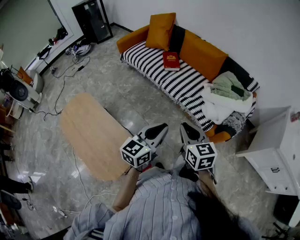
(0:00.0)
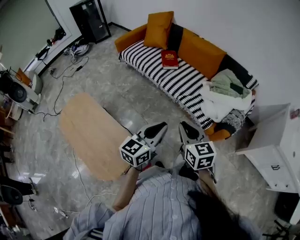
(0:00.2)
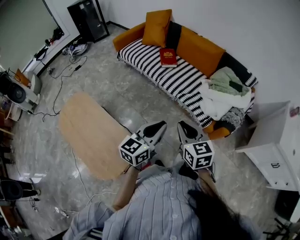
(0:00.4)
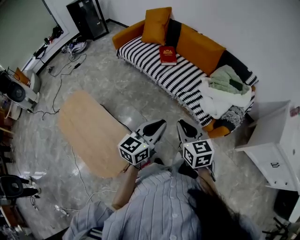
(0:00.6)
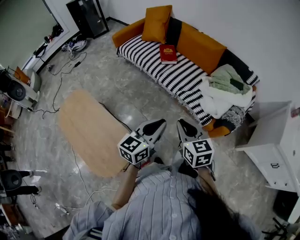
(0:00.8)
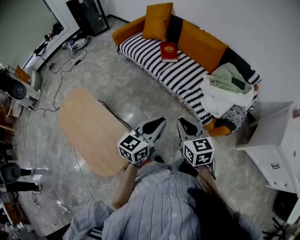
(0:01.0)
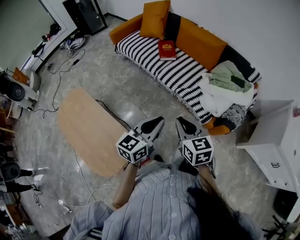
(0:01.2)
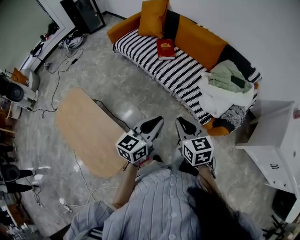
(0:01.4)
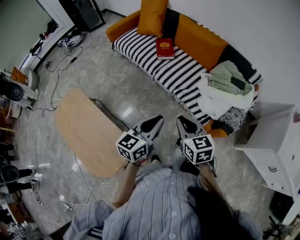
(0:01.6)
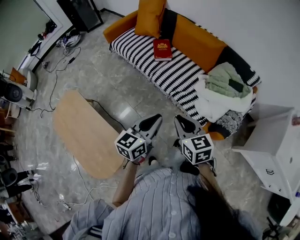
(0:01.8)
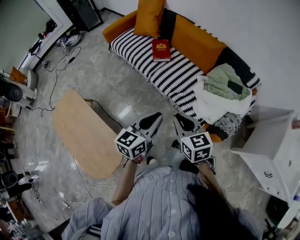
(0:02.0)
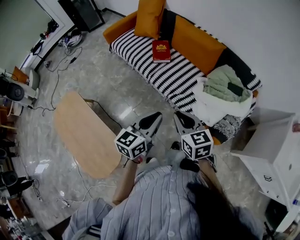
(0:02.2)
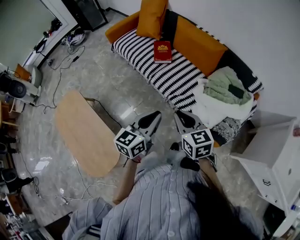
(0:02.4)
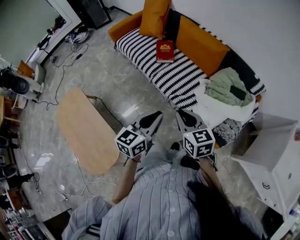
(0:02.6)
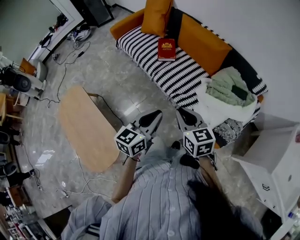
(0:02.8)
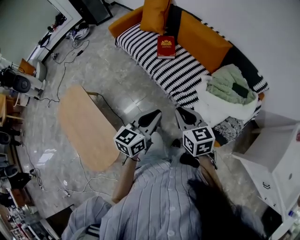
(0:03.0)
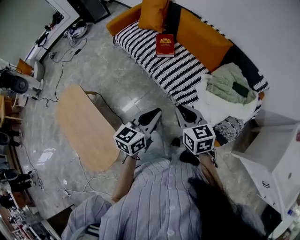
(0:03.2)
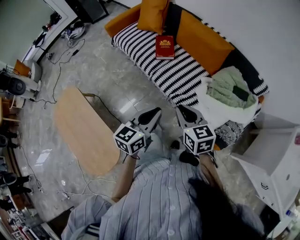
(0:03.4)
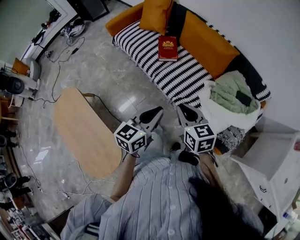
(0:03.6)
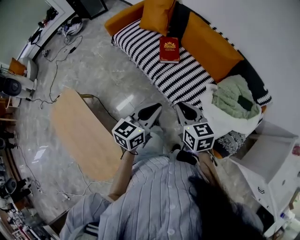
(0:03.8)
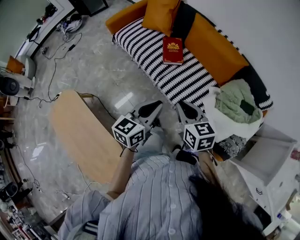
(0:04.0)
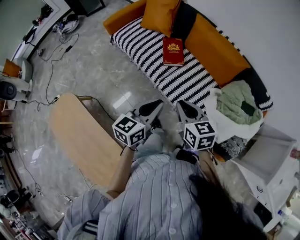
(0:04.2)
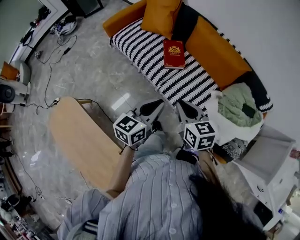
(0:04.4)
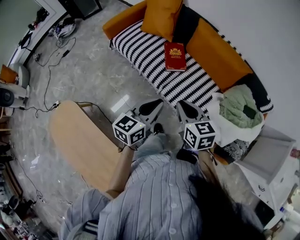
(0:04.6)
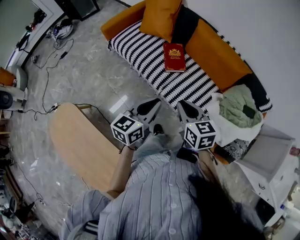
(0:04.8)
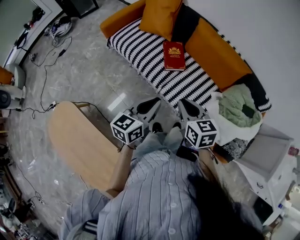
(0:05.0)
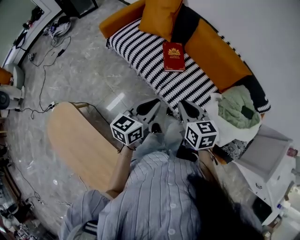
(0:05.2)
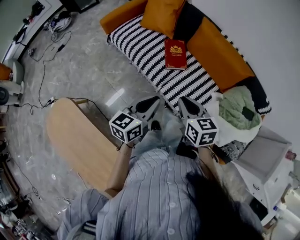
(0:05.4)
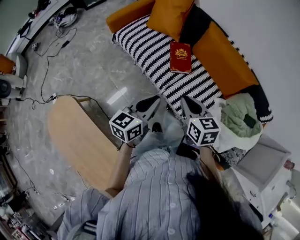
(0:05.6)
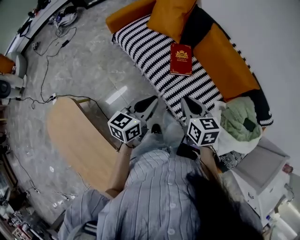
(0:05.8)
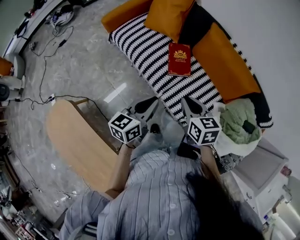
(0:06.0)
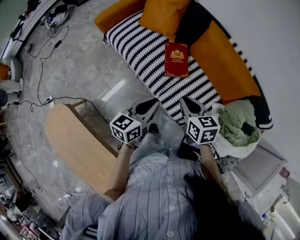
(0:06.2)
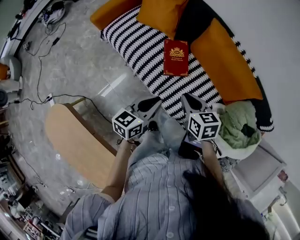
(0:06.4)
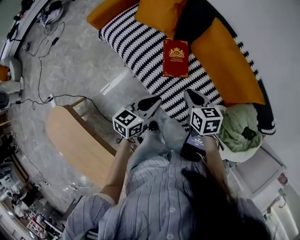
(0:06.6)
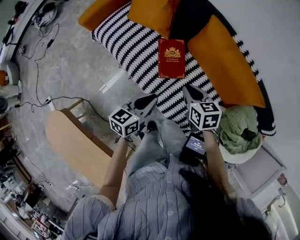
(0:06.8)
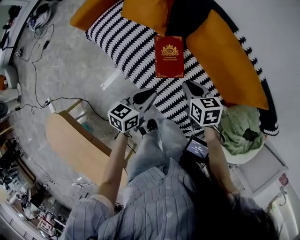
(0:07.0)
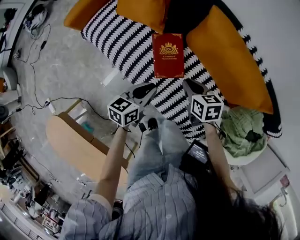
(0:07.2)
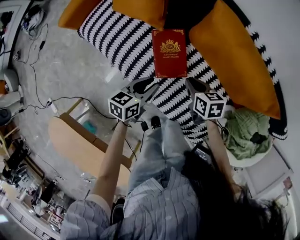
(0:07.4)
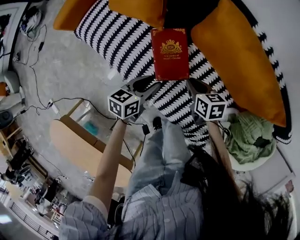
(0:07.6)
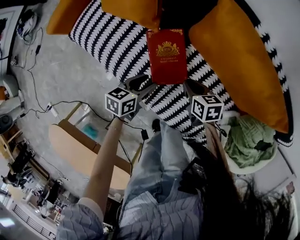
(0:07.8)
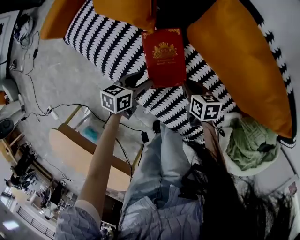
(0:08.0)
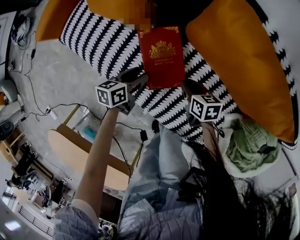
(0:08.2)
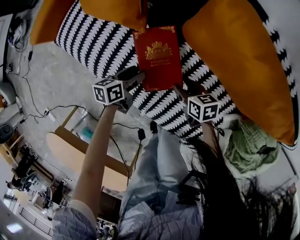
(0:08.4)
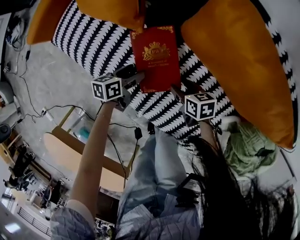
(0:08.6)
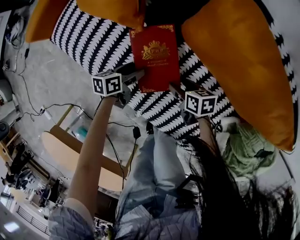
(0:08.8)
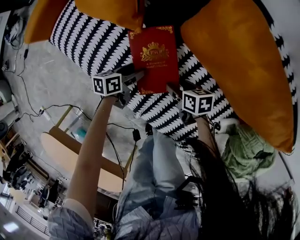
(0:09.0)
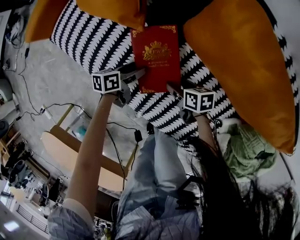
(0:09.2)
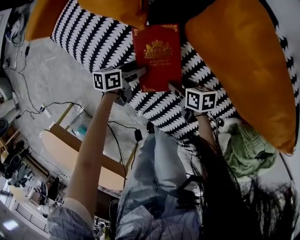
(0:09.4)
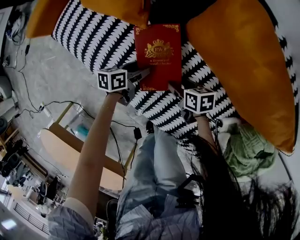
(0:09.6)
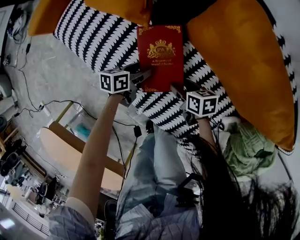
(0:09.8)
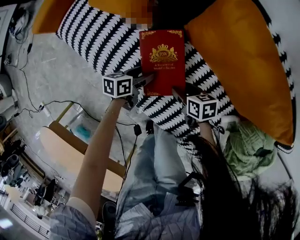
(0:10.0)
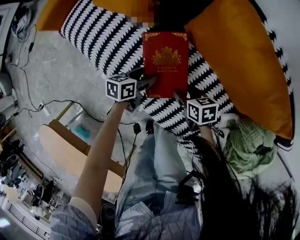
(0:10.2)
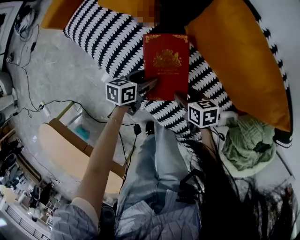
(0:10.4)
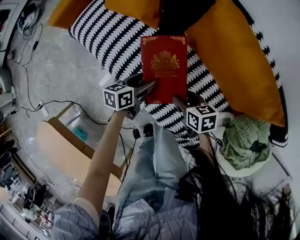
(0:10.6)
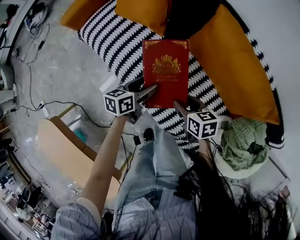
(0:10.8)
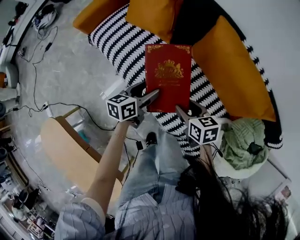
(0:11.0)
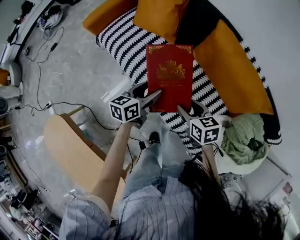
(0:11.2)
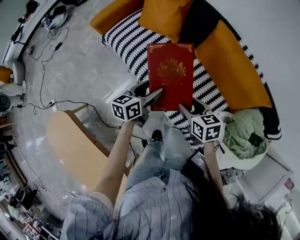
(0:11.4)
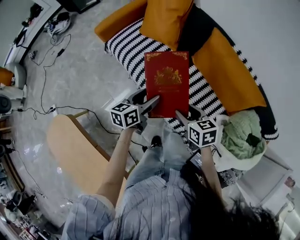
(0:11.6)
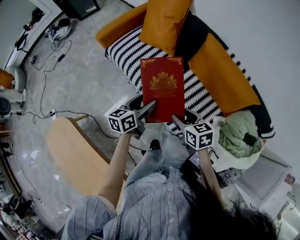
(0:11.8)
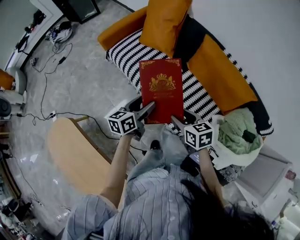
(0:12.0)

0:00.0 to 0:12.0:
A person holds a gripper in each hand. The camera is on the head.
0:00.0 to 0:01.6: The grippers both shift forward by about 10 cm.
0:01.6 to 0:03.0: Both grippers travel together forward and to the right, about 15 cm.
0:03.0 to 0:04.4: The two grippers go roughly 30 cm forward and to the left.
0:04.4 to 0:06.0: The left gripper heads forward and to the left, covering roughly 15 cm, while the right gripper moves forward, approximately 15 cm.
0:06.0 to 0:07.6: The grippers both shift downward and forward by approximately 40 cm. The left gripper rotates approximately 30 degrees. The right gripper swivels roughly 20 degrees.
0:07.6 to 0:09.0: The right gripper travels downward by roughly 15 cm, and opens; the left gripper shifts about 20 cm downward and forward, and opens up.
0:09.0 to 0:10.4: Both grippers move upward, about 10 cm.
0:10.4 to 0:12.0: The right gripper moves upward and backward, about 35 cm, and changes its angle by about 20 degrees. Meanwhile the left gripper moves upward, backward and to the left, about 40 cm, and swivels roughly 30 degrees.

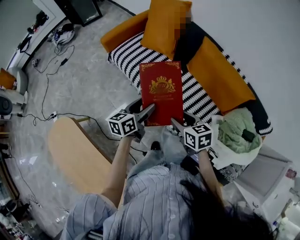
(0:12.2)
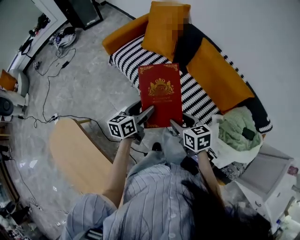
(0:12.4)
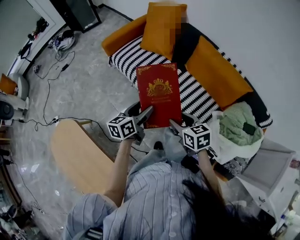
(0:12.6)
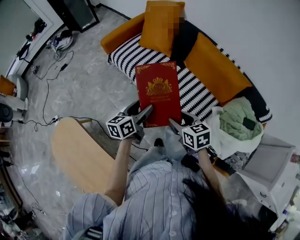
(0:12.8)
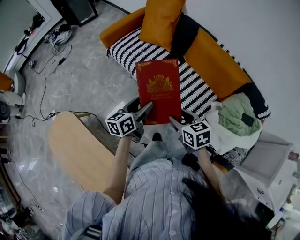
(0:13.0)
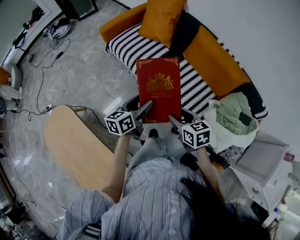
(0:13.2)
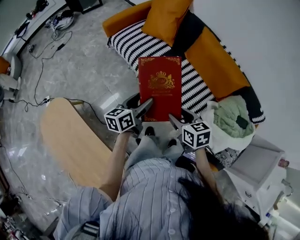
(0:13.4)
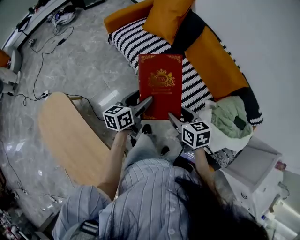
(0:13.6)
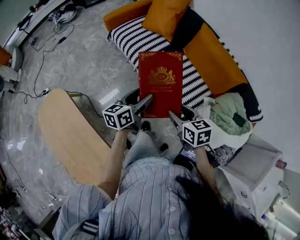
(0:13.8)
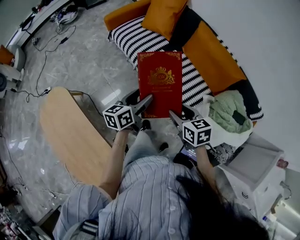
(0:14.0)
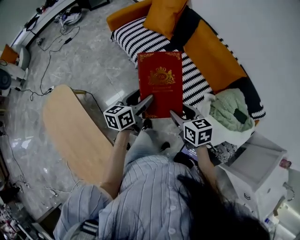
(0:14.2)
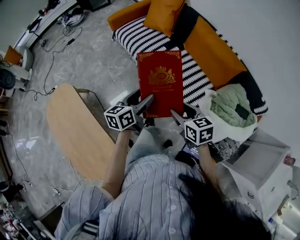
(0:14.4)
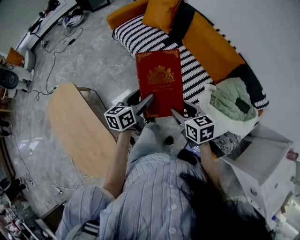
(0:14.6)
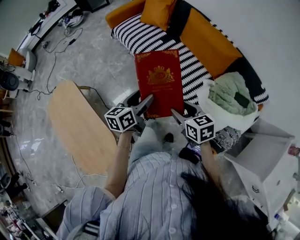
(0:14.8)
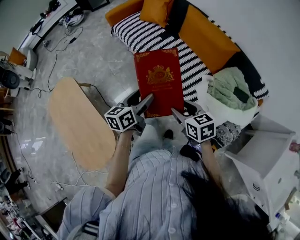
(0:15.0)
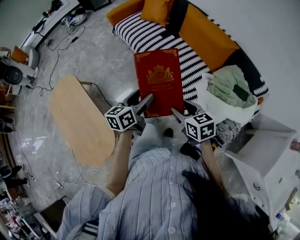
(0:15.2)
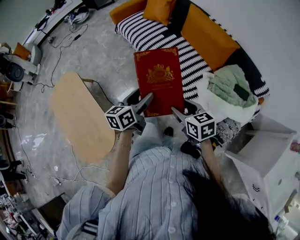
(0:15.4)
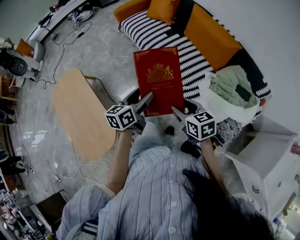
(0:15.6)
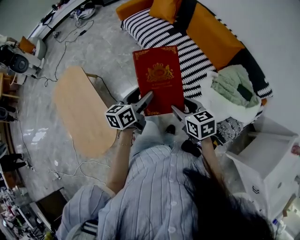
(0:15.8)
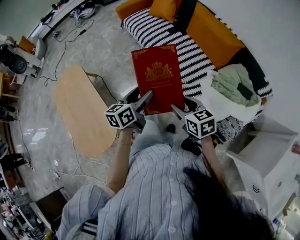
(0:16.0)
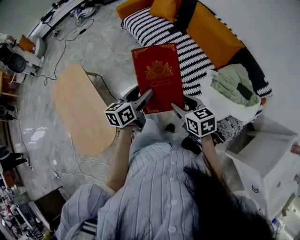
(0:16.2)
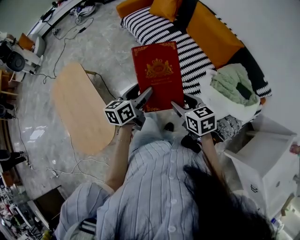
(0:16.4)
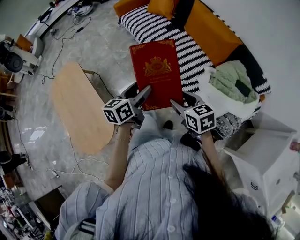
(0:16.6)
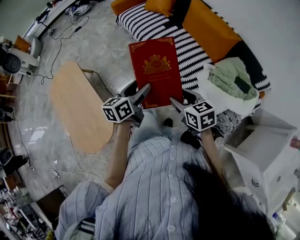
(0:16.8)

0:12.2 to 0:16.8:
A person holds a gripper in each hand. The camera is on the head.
0:12.2 to 0:13.8: Both grippers travel together backward, roughly 15 cm.
0:13.8 to 0:15.2: The left gripper is displaced backward by roughly 20 cm, while the right gripper goes approximately 20 cm backward and to the right.
0:15.2 to 0:16.8: The grippers stay close to where they were, moving slightly.

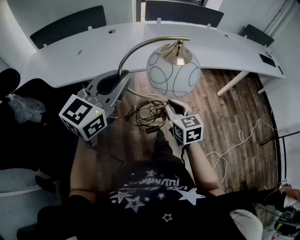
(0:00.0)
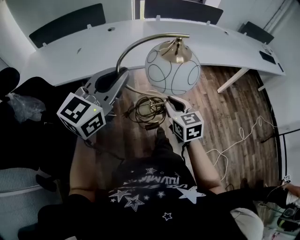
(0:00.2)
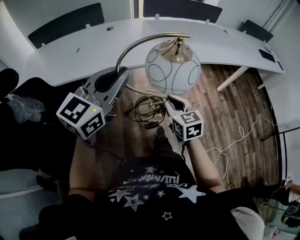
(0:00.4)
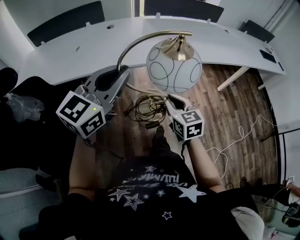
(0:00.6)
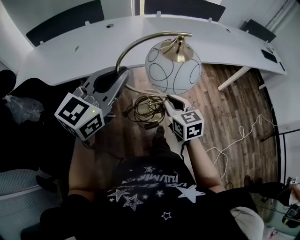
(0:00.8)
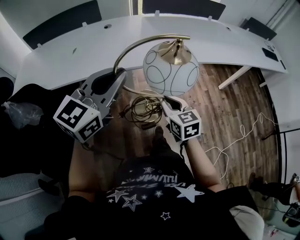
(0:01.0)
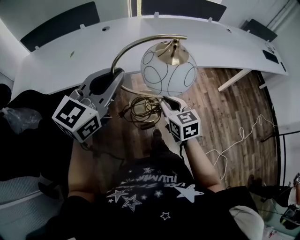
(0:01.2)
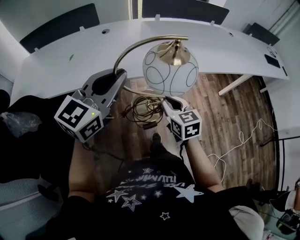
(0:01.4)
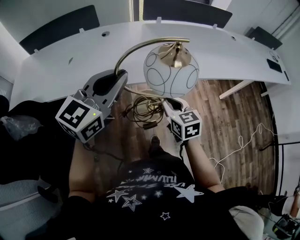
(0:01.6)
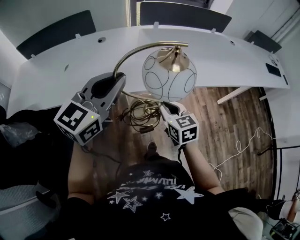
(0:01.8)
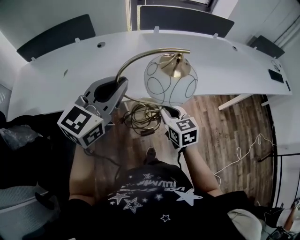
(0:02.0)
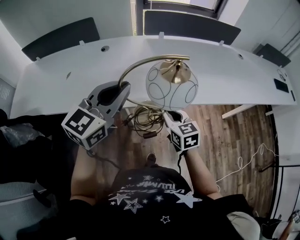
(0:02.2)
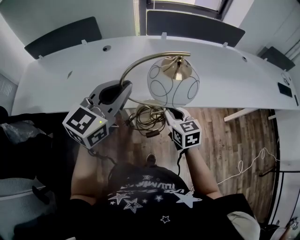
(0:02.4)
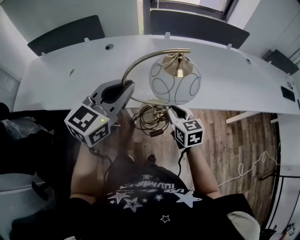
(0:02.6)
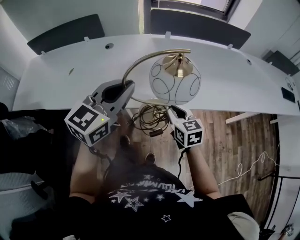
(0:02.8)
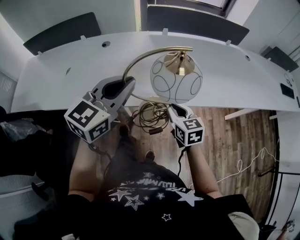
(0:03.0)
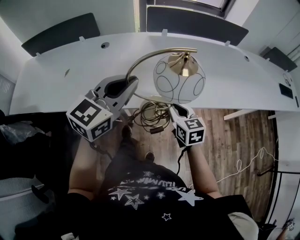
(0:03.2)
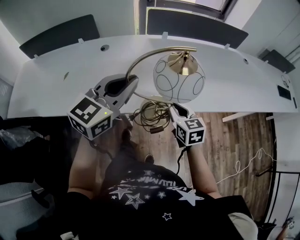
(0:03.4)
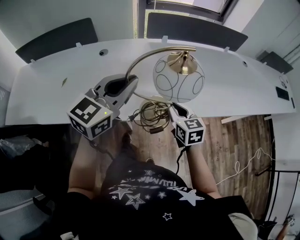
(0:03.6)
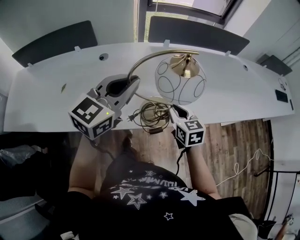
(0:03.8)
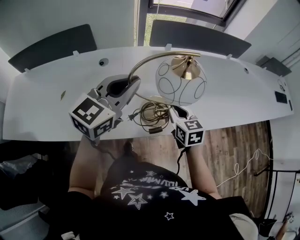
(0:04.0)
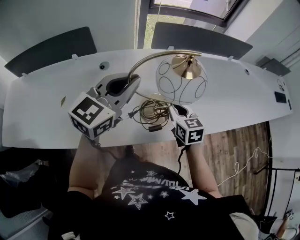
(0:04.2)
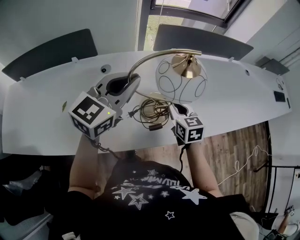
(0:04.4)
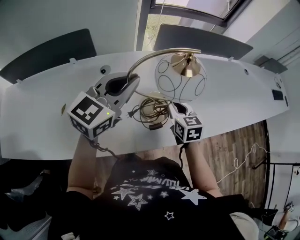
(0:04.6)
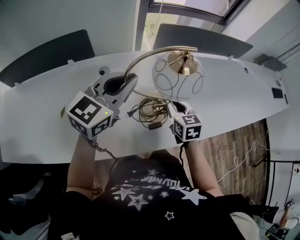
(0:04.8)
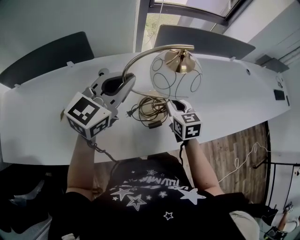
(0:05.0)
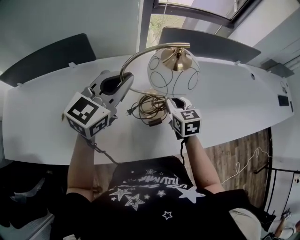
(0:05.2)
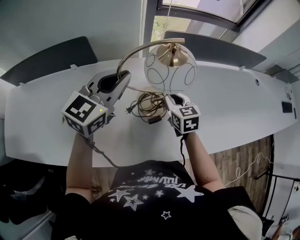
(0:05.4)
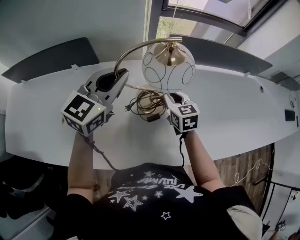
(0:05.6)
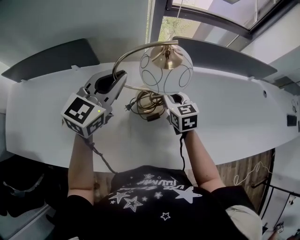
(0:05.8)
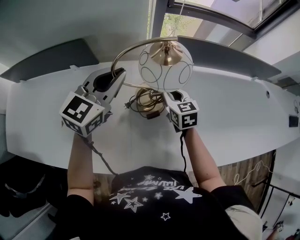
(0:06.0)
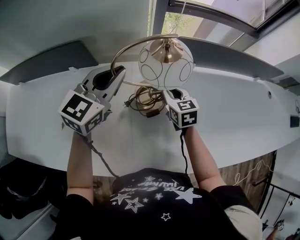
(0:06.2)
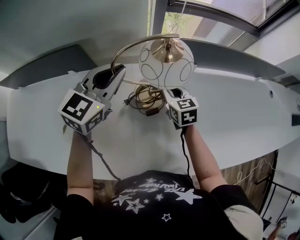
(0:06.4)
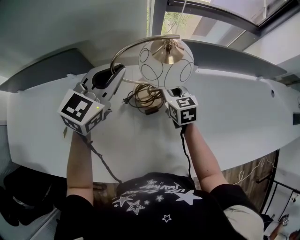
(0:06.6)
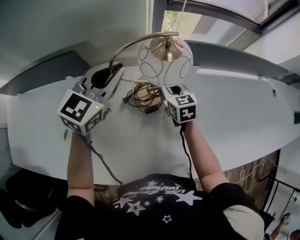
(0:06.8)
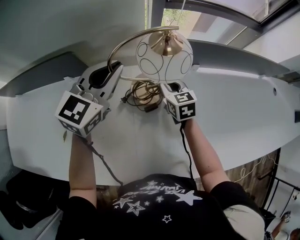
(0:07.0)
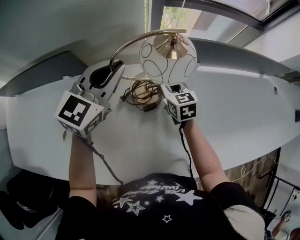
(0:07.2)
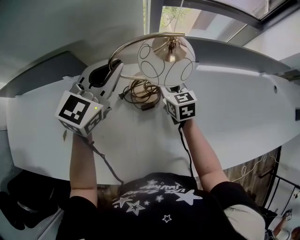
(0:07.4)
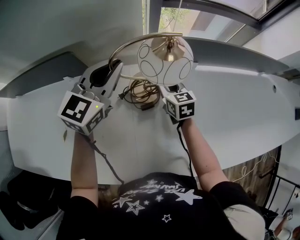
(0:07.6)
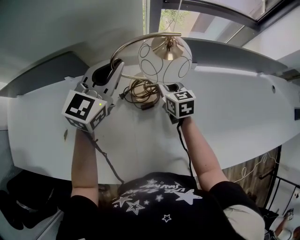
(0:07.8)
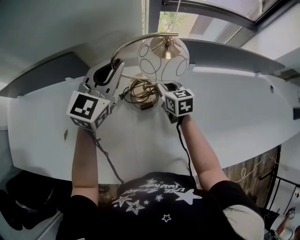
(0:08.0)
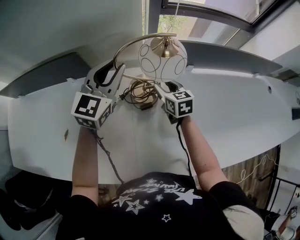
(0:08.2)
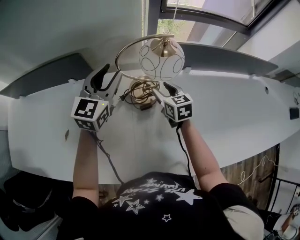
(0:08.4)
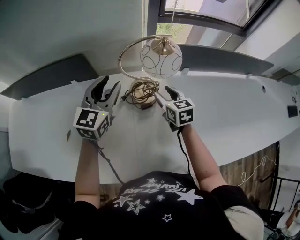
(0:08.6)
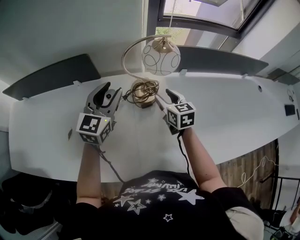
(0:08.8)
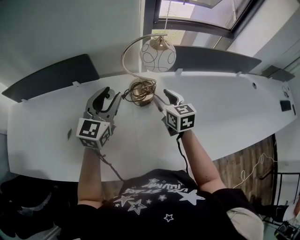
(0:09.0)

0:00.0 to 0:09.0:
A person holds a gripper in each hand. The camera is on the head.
0:00.0 to 0:01.6: The grippers make only small movements.
0:01.6 to 0:03.0: The right gripper shifts by about 5 cm.
0:03.0 to 0:04.4: The right gripper goes approximately 10 cm to the left and upward. Meanwhile the left gripper heads to the left, backward and upward, covering roughly 10 cm.
0:04.4 to 0:06.0: The left gripper moves backward, some 5 cm.
0:06.0 to 0:07.6: There are only small adjustments of the grippers.
0:07.6 to 0:09.0: The left gripper travels backward by some 10 cm, and opens, while the right gripper is displaced backward and upward by about 15 cm, and opens.
